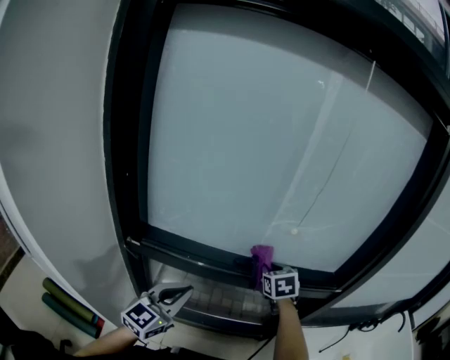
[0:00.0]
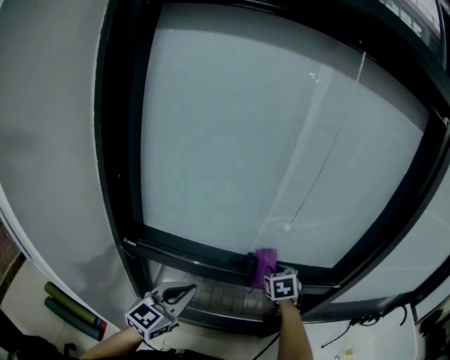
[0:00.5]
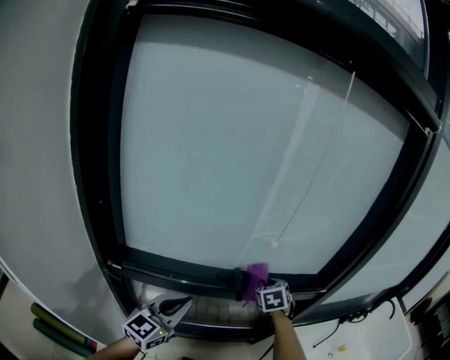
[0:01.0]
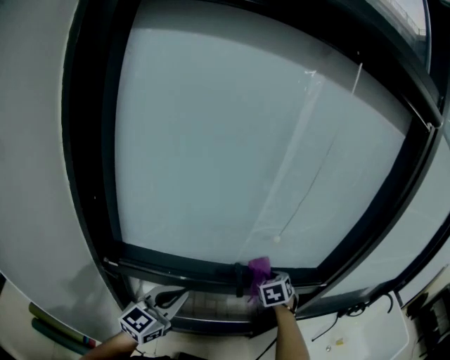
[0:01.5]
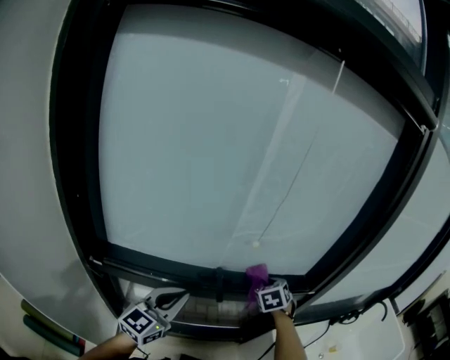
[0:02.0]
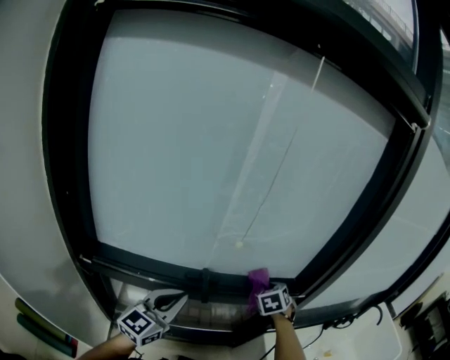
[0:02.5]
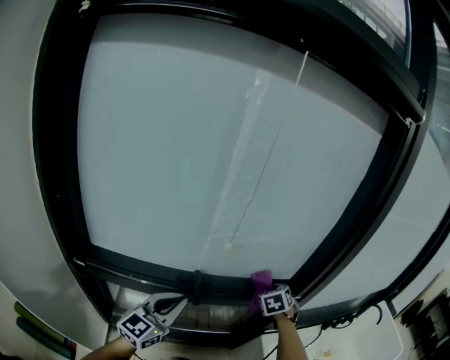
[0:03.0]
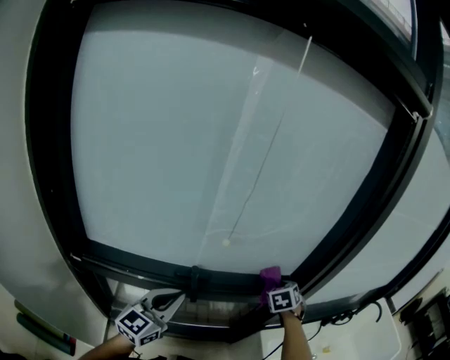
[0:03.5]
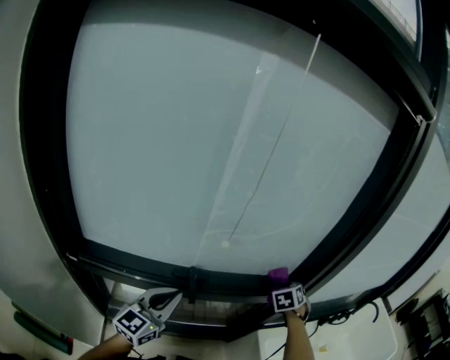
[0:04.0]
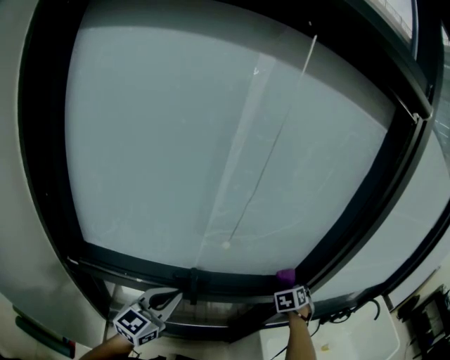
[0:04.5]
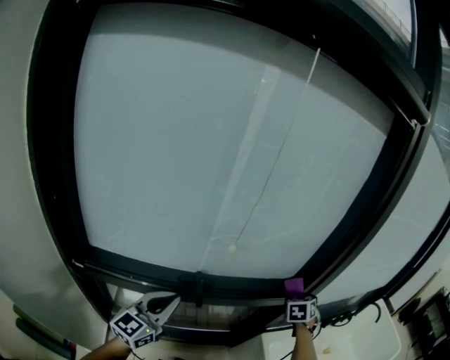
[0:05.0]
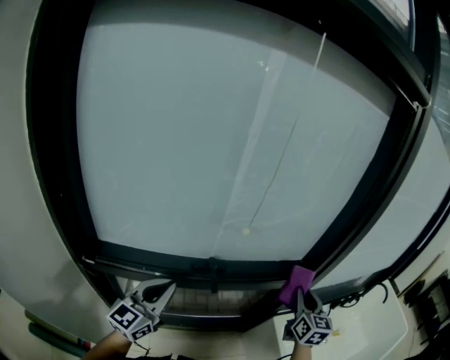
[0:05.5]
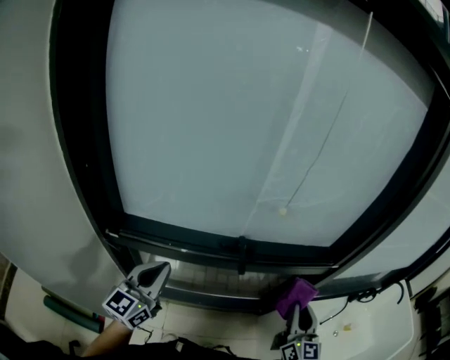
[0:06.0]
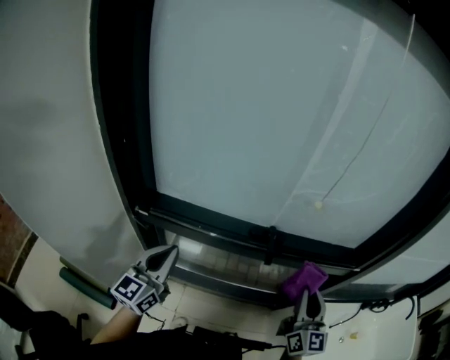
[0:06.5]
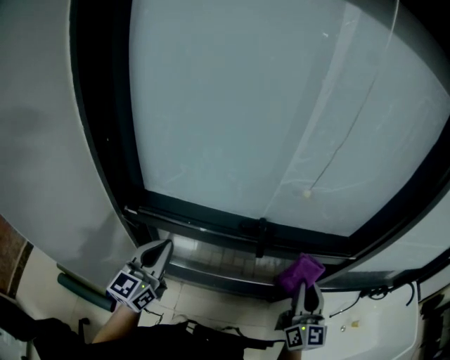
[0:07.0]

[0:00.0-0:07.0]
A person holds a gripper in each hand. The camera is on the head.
0:00.0 to 0:02.0: The right gripper heads to the right, covering roughly 10 cm; the left gripper heads forward, covering approximately 5 cm.
0:02.0 to 0:03.5: The left gripper shifts about 5 cm to the right. The right gripper moves to the right and forward, about 15 cm.
0:03.5 to 0:05.0: The right gripper is displaced to the right by approximately 10 cm.
0:05.0 to 0:07.0: The right gripper shifts by about 30 cm, and tips its fingers upward by about 40 degrees. Meanwhile the left gripper moves some 20 cm, and swivels approximately 20 degrees.

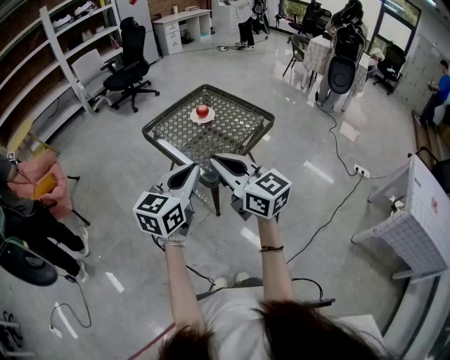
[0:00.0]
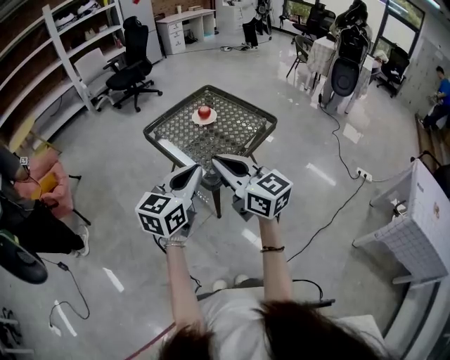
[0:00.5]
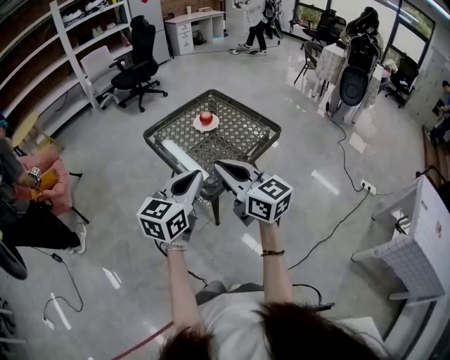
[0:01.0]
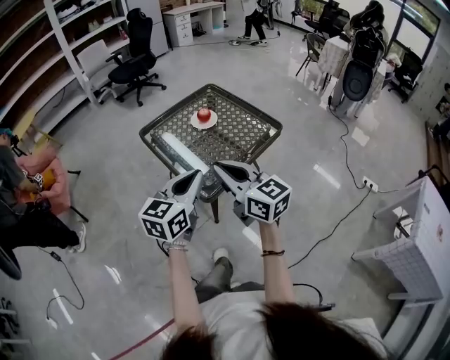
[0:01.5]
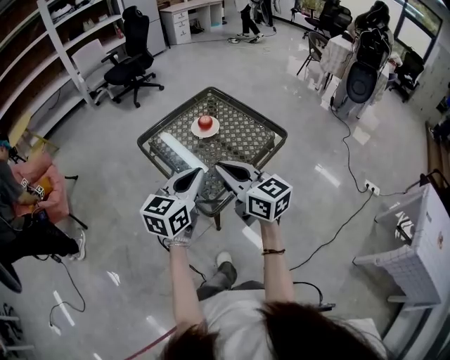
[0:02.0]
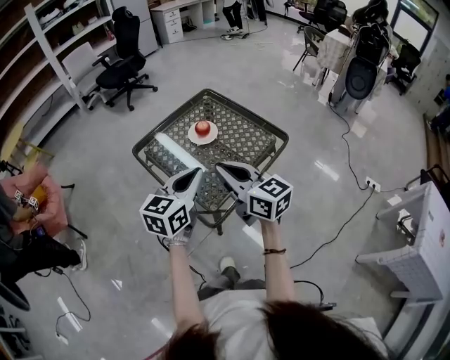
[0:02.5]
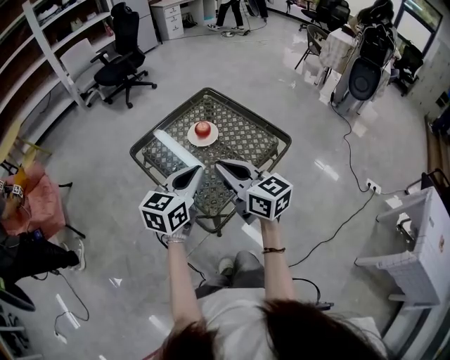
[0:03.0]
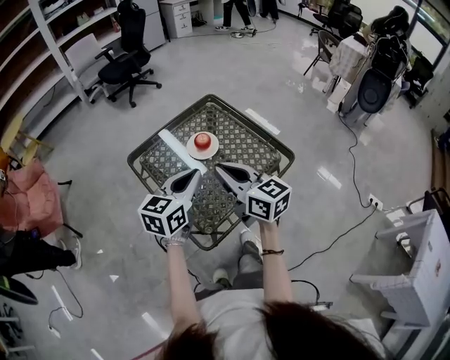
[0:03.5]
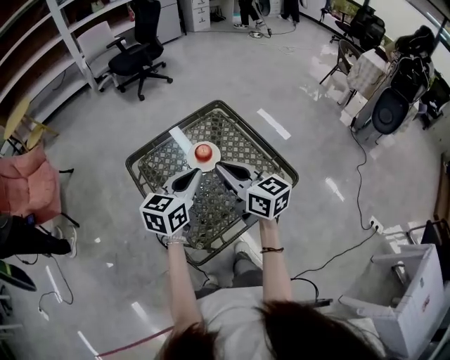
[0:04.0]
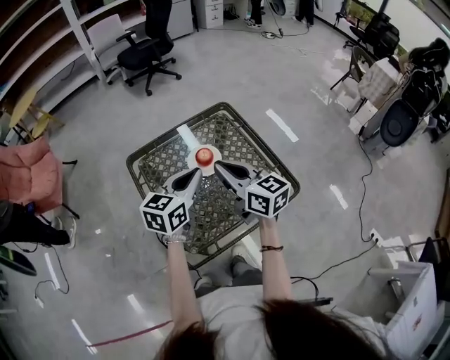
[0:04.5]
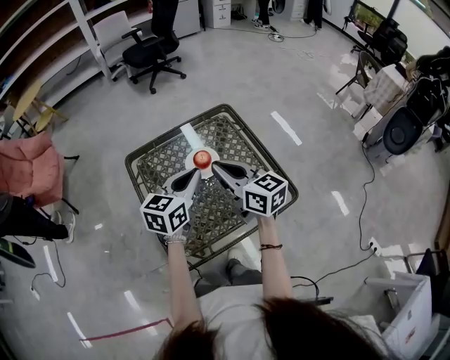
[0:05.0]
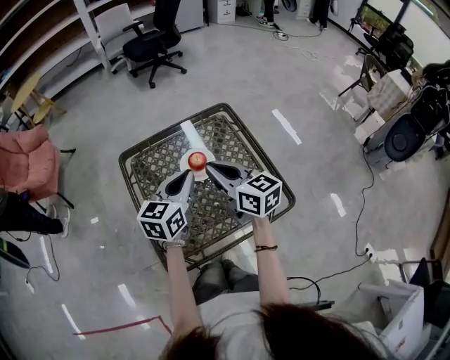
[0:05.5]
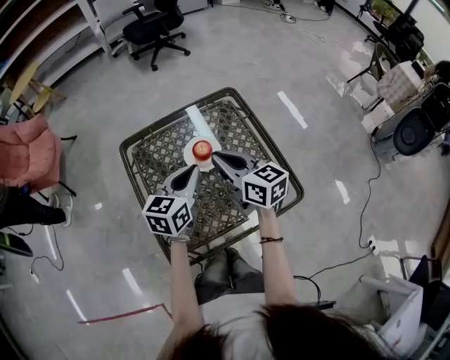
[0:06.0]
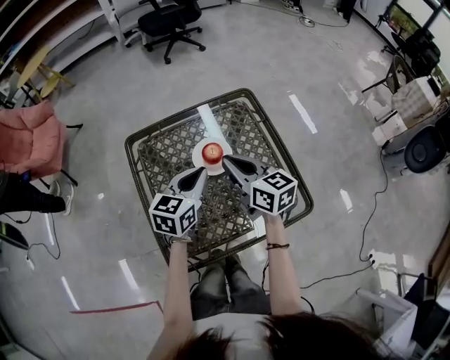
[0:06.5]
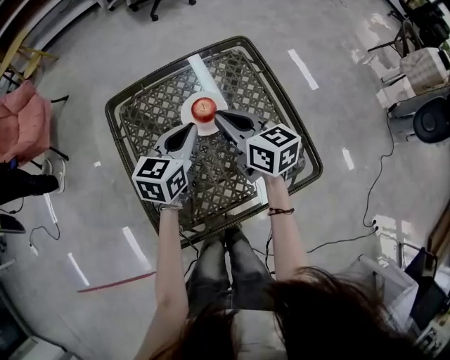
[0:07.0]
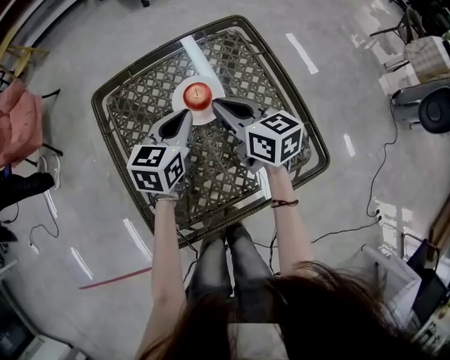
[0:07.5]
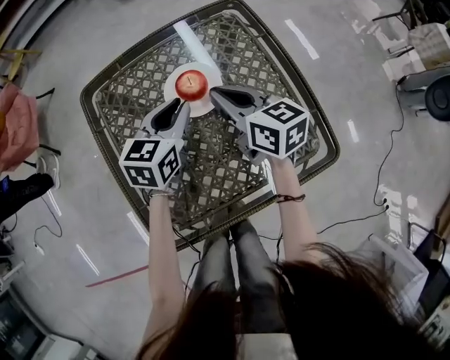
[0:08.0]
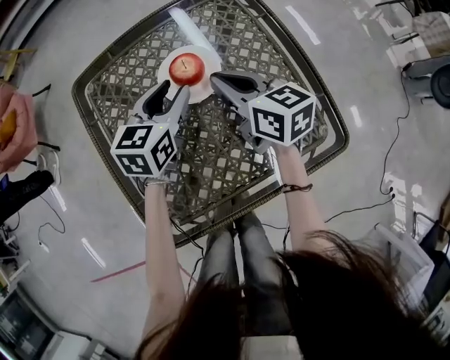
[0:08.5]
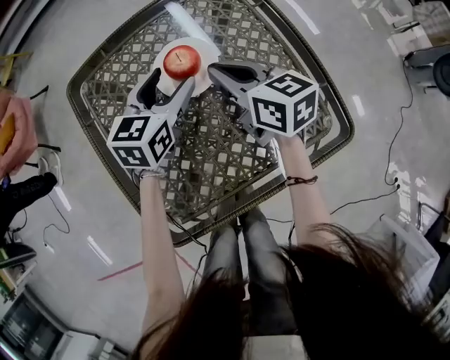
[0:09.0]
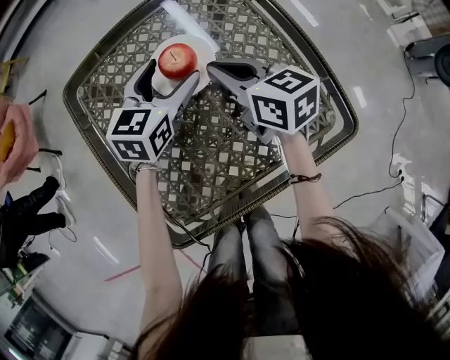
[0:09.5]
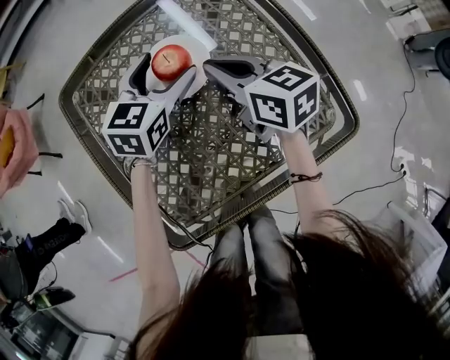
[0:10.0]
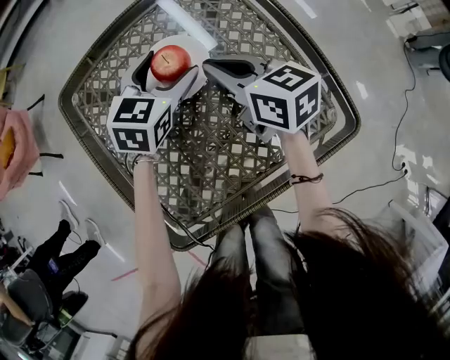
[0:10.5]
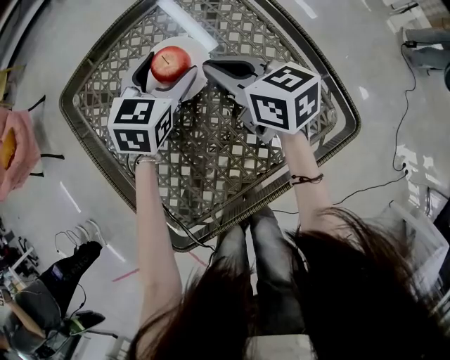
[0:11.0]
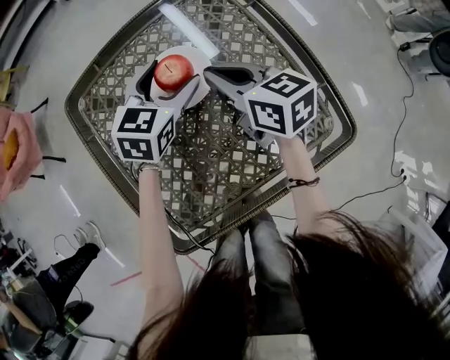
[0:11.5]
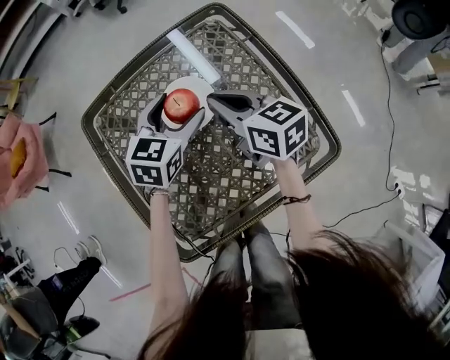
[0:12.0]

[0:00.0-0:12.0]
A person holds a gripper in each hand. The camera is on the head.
0:00.0 to 0:02.0: Both grippers move forward, roughly 20 cm.
0:02.0 to 0:04.0: The two grippers go approximately 25 cm forward.
0:04.0 to 0:06.0: Both grippers travel together forward and downward, roughly 10 cm.
0:06.0 to 0:08.0: Both grippers travel together downward and forward, some 15 cm.
0:08.0 to 0:10.0: The left gripper moves forward, some 5 cm, and opens. Meanwhile the right gripper shifts by about 5 cm.
0:10.0 to 0:12.0: The right gripper goes about 5 cm upward.

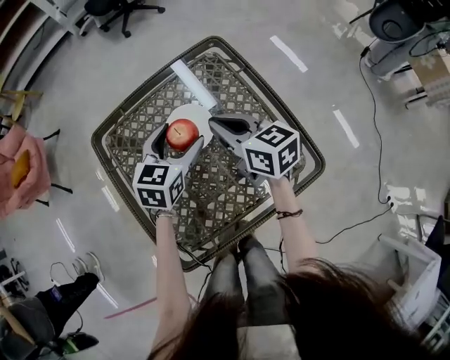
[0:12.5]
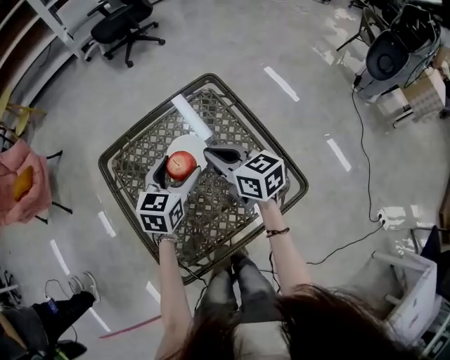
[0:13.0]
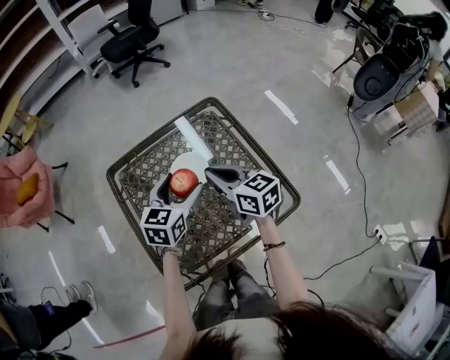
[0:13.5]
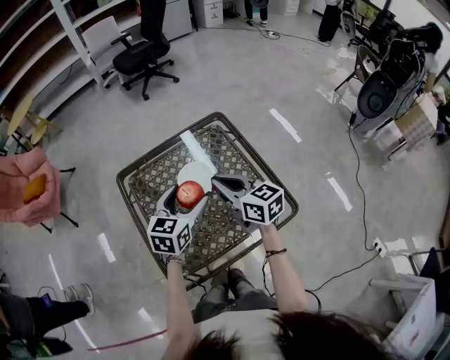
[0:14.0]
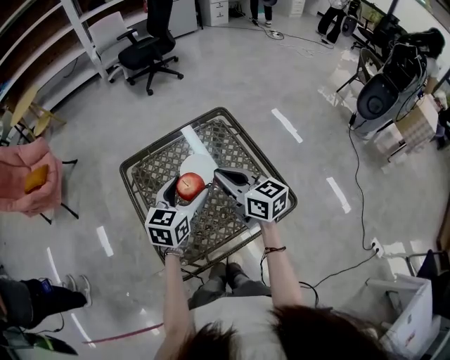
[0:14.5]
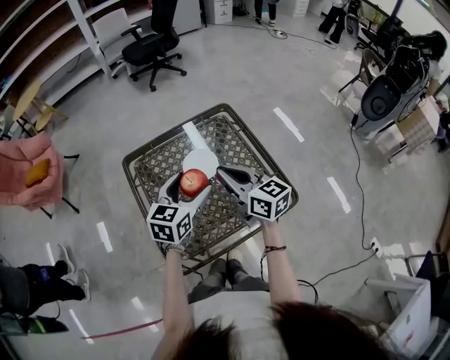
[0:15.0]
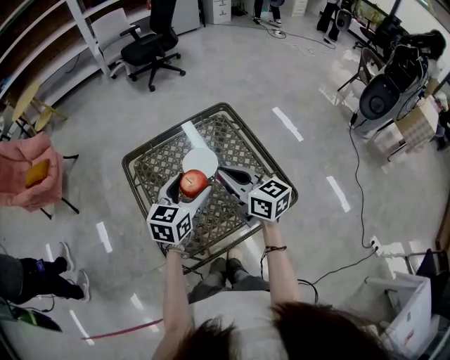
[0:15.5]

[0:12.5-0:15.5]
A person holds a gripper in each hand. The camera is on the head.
0:12.5 to 0:14.0: The right gripper shifts roughly 5 cm upward. Meanwhile the left gripper travels upward and backward by about 10 cm.
0:14.0 to 0:15.5: There are only small adjustments of the grippers.

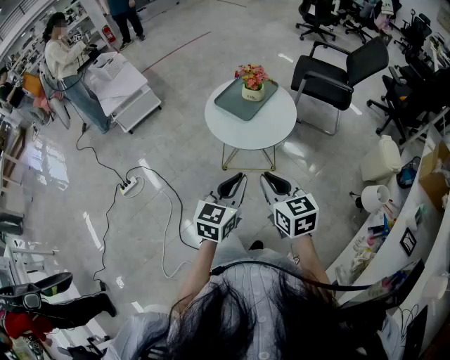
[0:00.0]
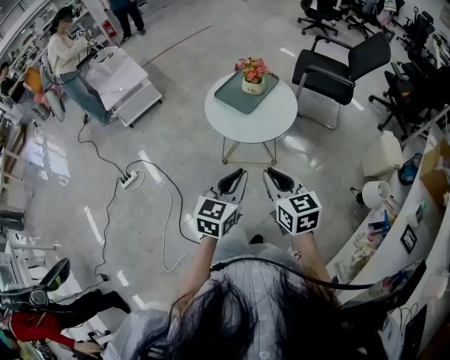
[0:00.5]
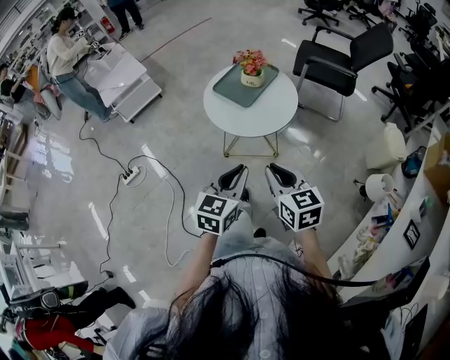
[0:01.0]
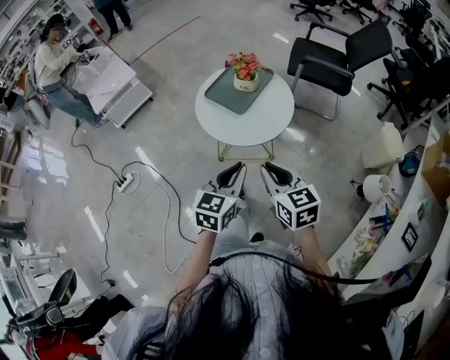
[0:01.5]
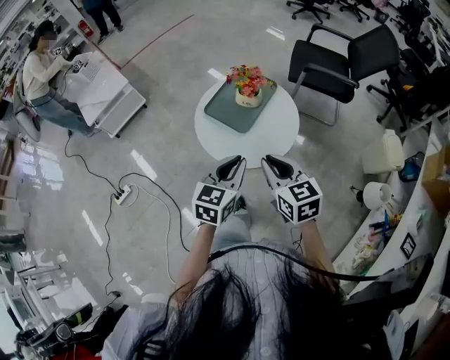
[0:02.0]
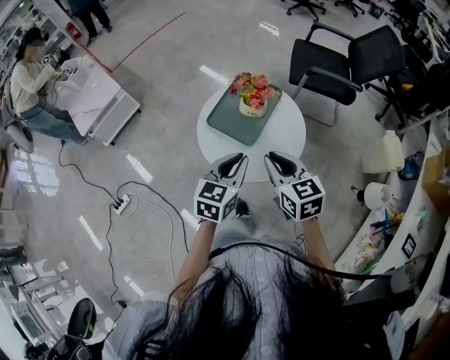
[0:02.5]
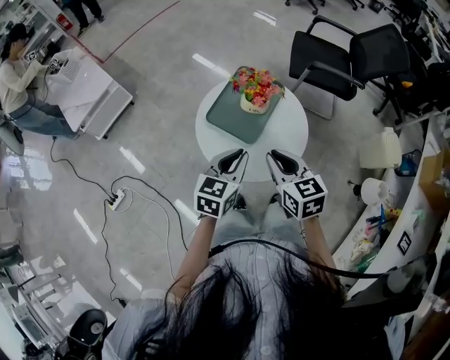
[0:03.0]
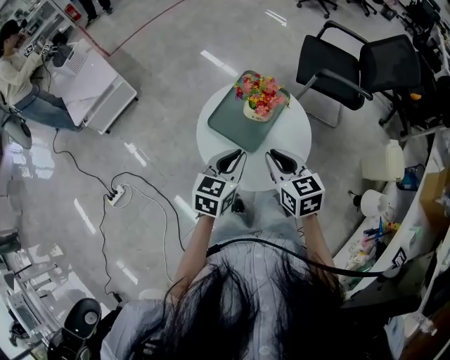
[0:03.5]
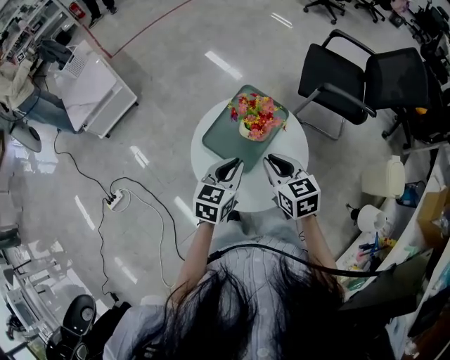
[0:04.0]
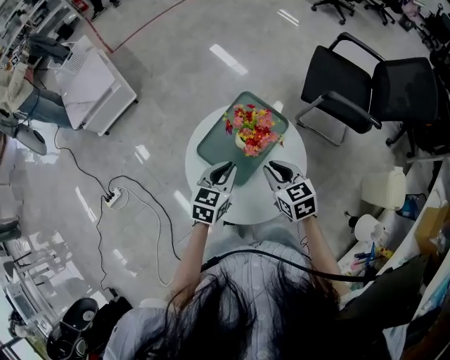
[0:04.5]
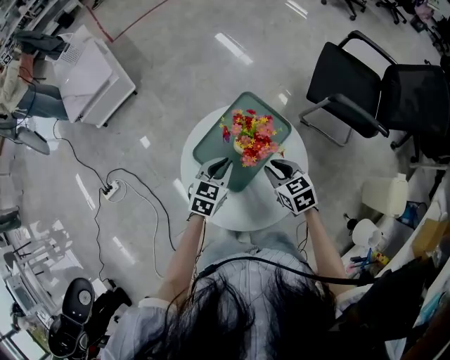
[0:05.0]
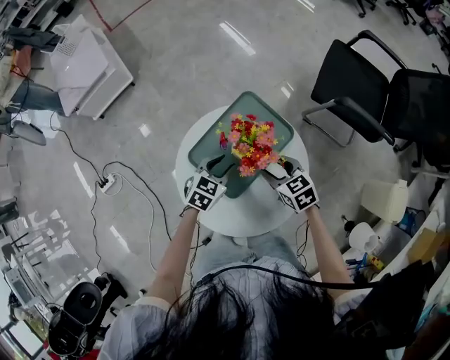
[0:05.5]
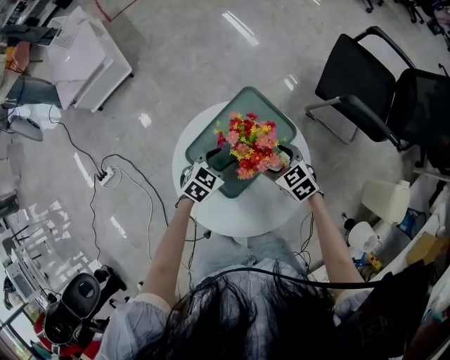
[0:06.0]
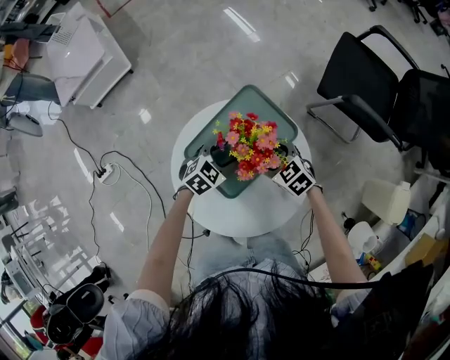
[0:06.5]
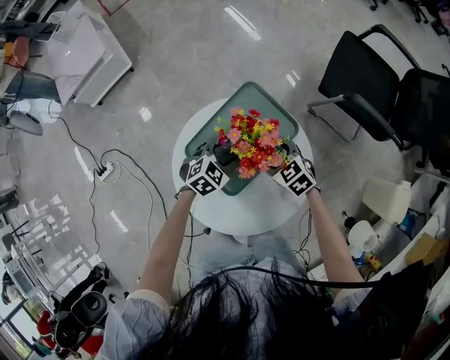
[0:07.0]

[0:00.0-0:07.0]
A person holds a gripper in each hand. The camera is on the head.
0:00.0 to 0:02.0: The grippers both shift forward by about 20 cm.
0:02.0 to 0:03.5: The grippers both shift forward by about 15 cm.
0:03.5 to 0:05.0: The right gripper travels downward, forward and to the right by some 20 cm, and rotates approximately 20 degrees; the left gripper goes approximately 20 cm forward and downward.
0:05.0 to 0:07.0: The left gripper shifts about 10 cm downward, turns by approximately 30 degrees, and opens its fingers. The right gripper travels downward and forward by approximately 10 cm, swivels roughly 20 degrees, and opens.
